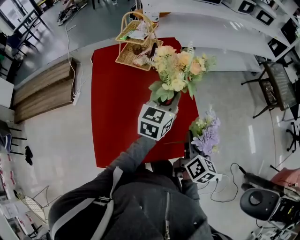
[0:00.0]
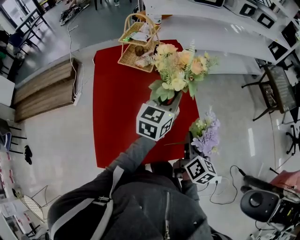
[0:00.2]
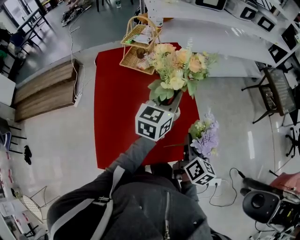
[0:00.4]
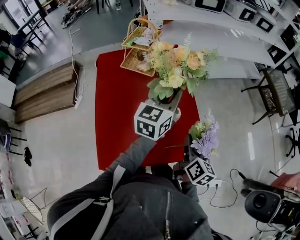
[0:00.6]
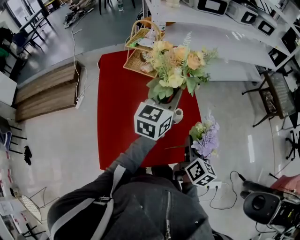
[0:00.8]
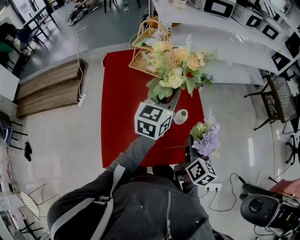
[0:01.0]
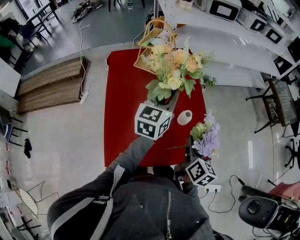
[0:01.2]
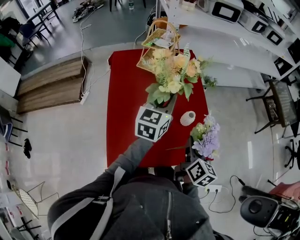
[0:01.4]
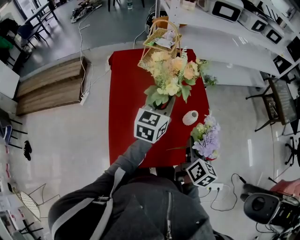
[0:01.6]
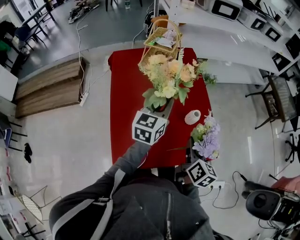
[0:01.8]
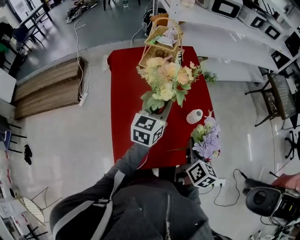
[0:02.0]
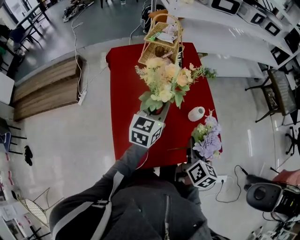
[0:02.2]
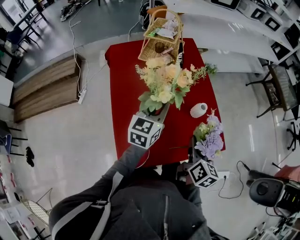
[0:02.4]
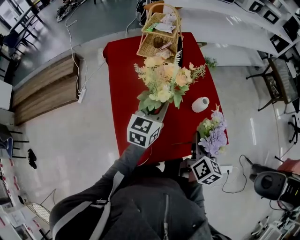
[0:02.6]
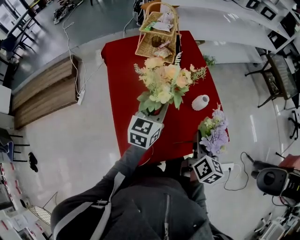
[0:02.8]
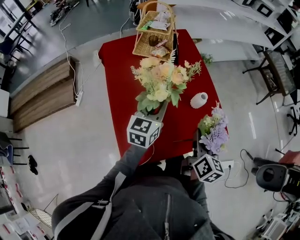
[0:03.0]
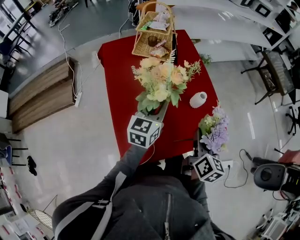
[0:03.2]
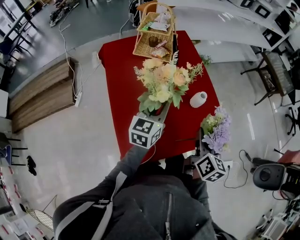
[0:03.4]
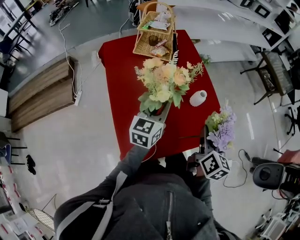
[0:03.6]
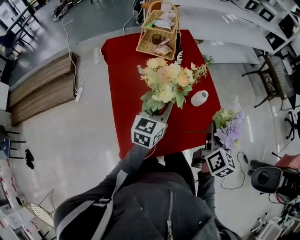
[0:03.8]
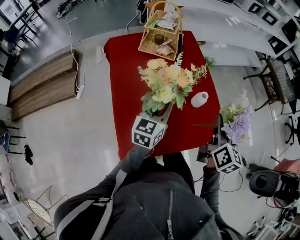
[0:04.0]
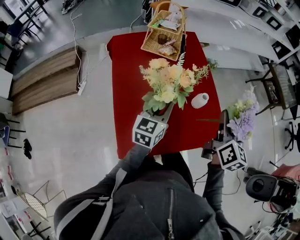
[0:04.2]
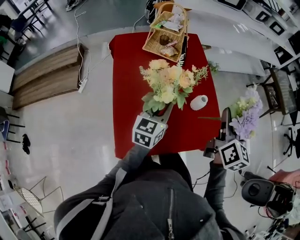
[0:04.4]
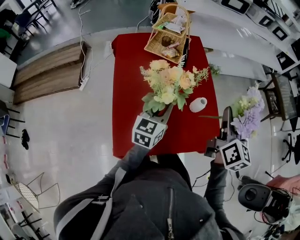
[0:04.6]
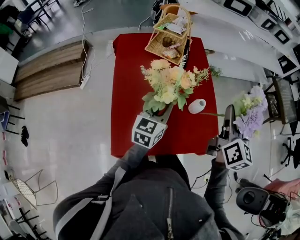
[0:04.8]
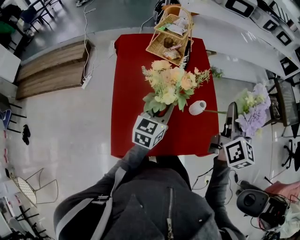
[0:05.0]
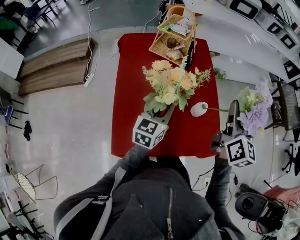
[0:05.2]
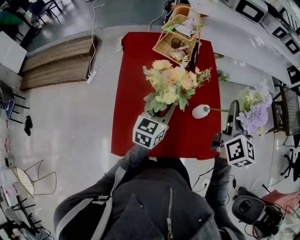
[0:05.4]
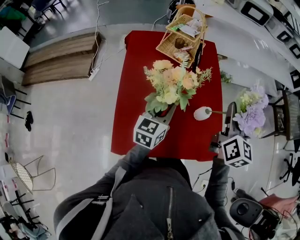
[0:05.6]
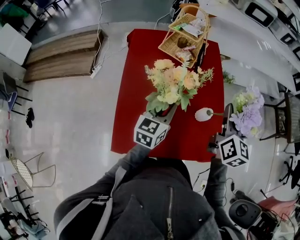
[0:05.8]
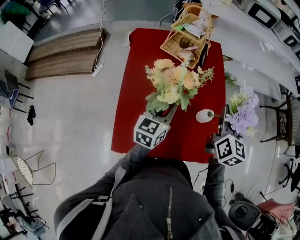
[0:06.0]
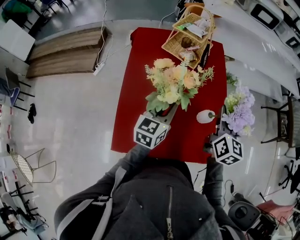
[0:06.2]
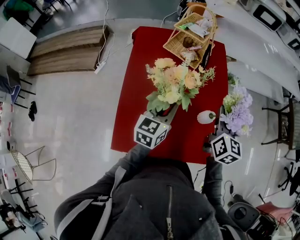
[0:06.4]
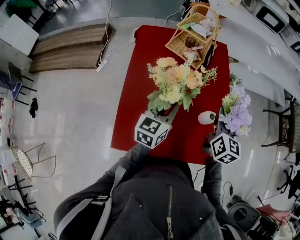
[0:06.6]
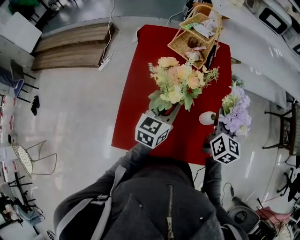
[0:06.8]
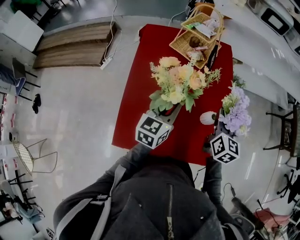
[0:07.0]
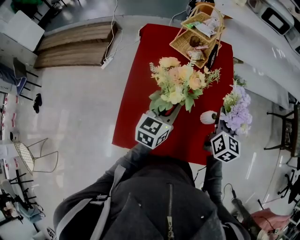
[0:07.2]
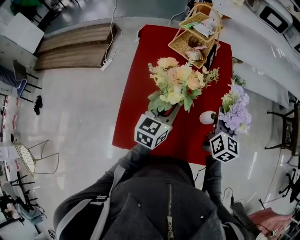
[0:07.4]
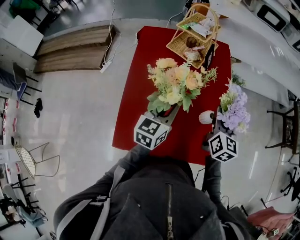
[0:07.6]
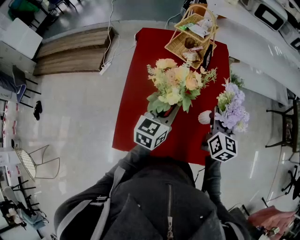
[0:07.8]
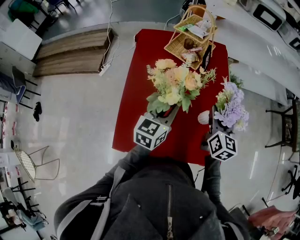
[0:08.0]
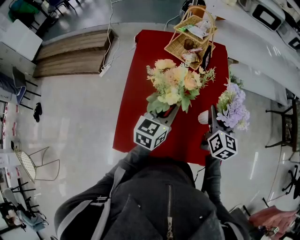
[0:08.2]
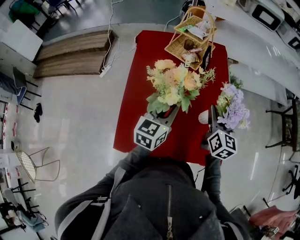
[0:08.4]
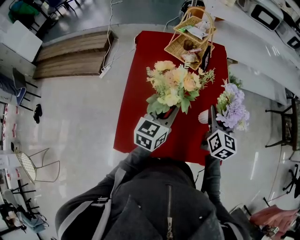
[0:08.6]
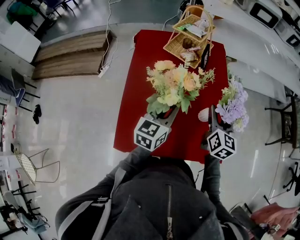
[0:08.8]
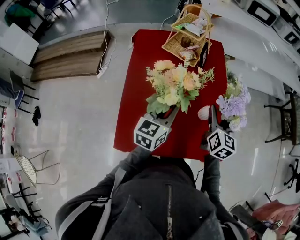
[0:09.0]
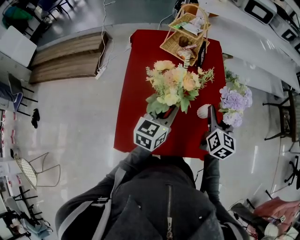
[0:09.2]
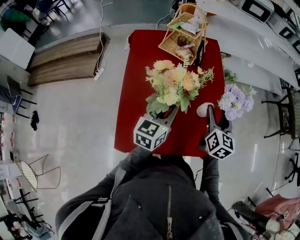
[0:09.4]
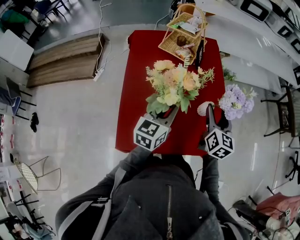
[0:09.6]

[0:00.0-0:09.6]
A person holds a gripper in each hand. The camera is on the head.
0:00.0 to 0:01.6: Both grippers move to the left, roughly 10 cm.
0:01.6 to 0:03.2: The left gripper shifts some 10 cm downward and backward.
0:03.2 to 0:04.8: The right gripper heads upward and forward, covering roughly 20 cm, and rotates about 20 degrees.
0:04.8 to 0:06.4: The right gripper shifts some 10 cm downward and forward.
0:06.4 to 0:08.0: The right gripper opens up.
0:08.0 to 0:09.6: The grippers stay close to where they were, moving slightly.

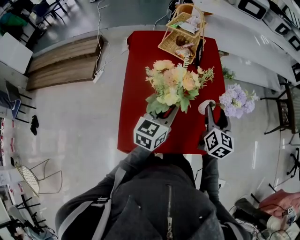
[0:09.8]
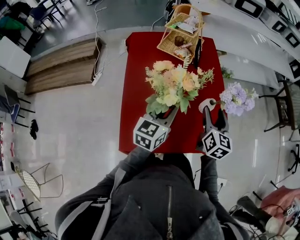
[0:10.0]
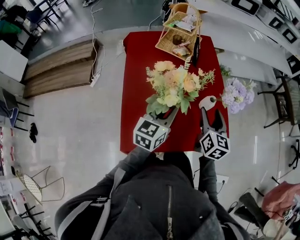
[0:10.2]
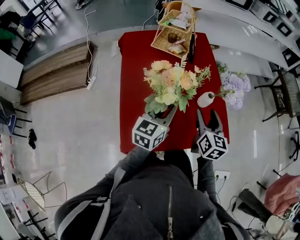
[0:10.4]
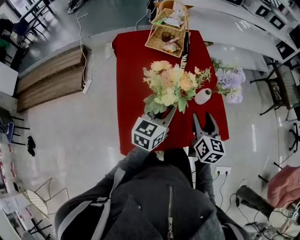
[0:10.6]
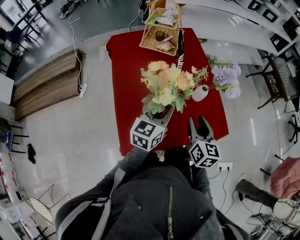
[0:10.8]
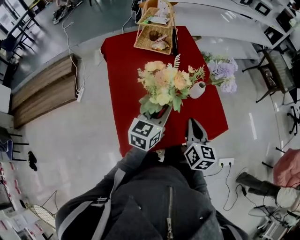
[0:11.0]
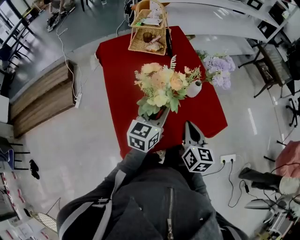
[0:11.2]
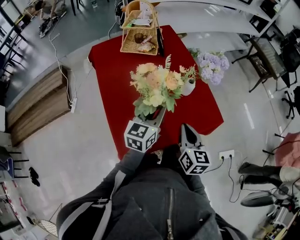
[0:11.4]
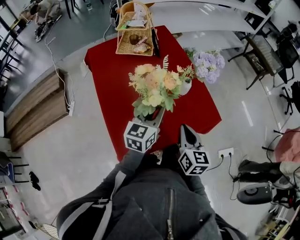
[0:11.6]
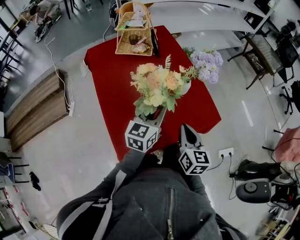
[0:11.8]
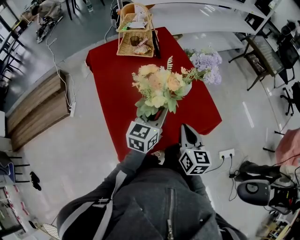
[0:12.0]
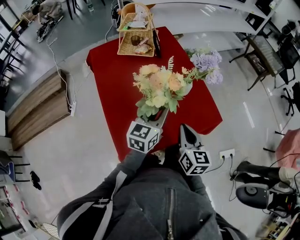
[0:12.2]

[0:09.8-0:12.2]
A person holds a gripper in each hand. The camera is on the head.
0:09.8 to 0:11.0: The right gripper heads backward, covering some 15 cm, and closes its fingers.
0:11.0 to 0:12.2: The grippers stay close to where they were, moving slightly.

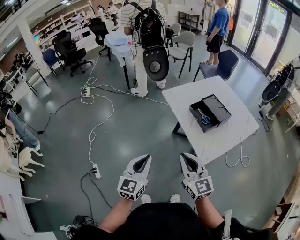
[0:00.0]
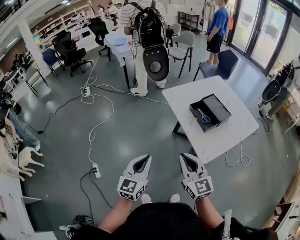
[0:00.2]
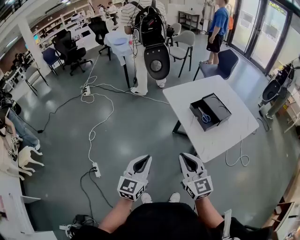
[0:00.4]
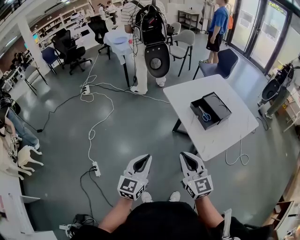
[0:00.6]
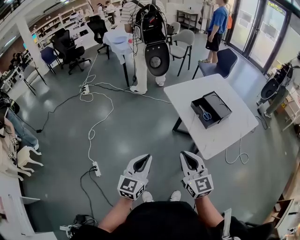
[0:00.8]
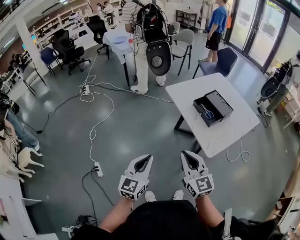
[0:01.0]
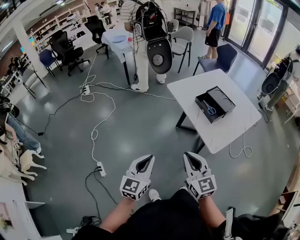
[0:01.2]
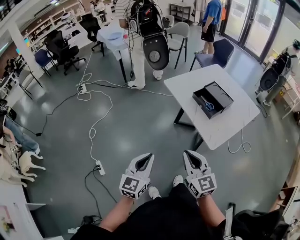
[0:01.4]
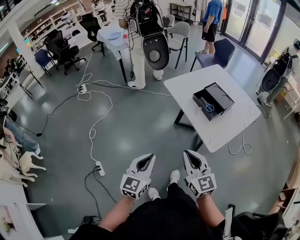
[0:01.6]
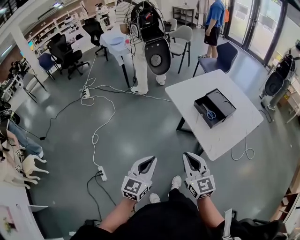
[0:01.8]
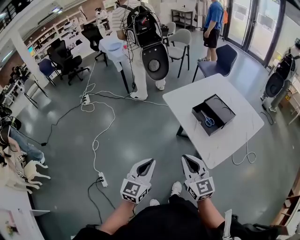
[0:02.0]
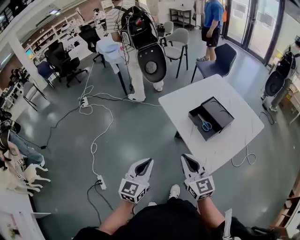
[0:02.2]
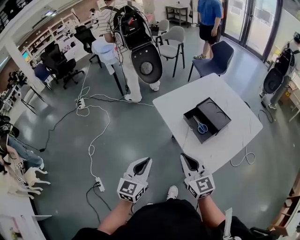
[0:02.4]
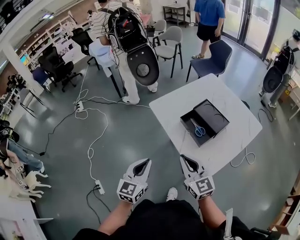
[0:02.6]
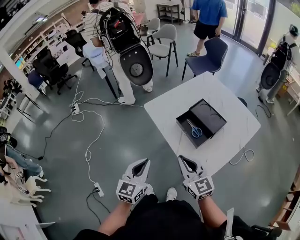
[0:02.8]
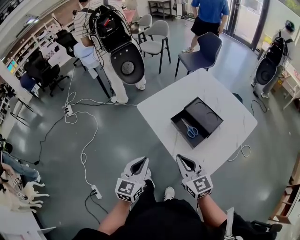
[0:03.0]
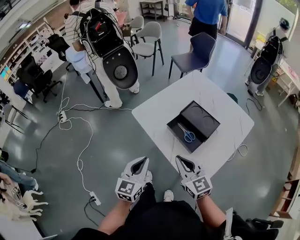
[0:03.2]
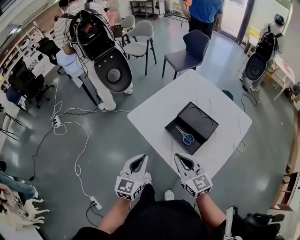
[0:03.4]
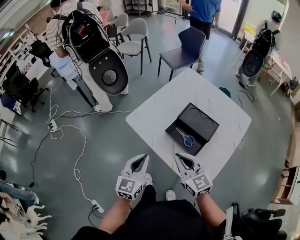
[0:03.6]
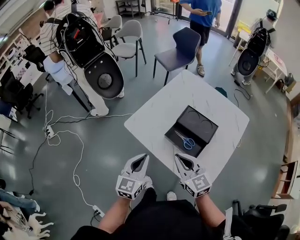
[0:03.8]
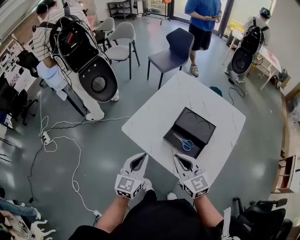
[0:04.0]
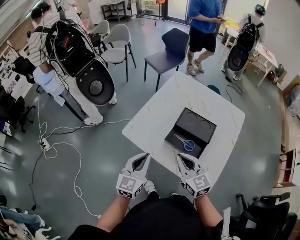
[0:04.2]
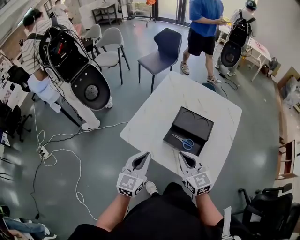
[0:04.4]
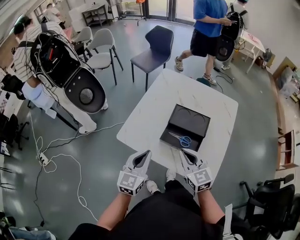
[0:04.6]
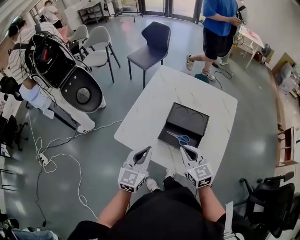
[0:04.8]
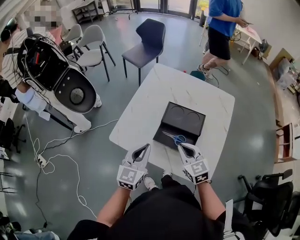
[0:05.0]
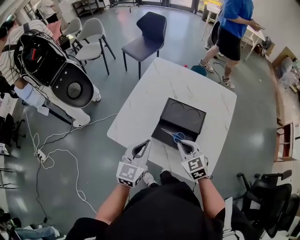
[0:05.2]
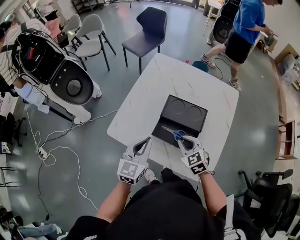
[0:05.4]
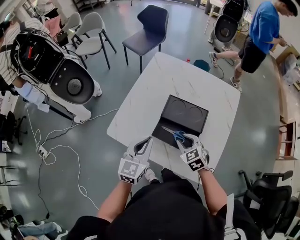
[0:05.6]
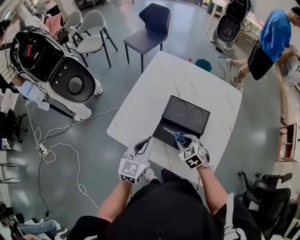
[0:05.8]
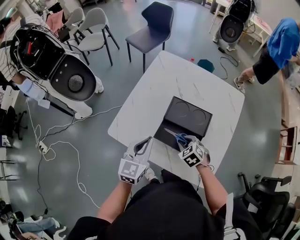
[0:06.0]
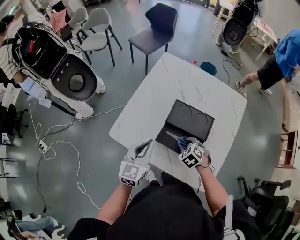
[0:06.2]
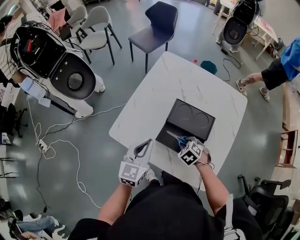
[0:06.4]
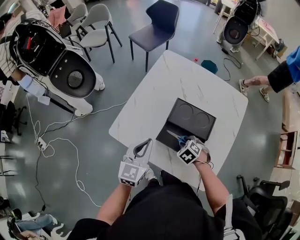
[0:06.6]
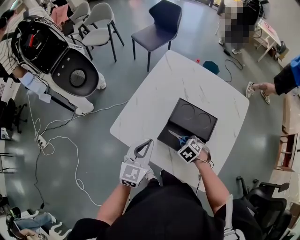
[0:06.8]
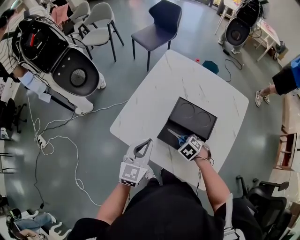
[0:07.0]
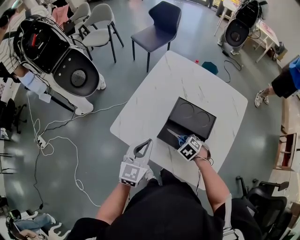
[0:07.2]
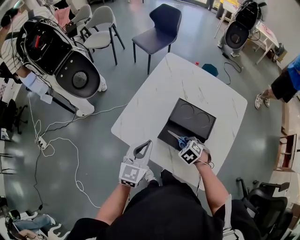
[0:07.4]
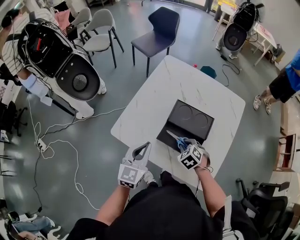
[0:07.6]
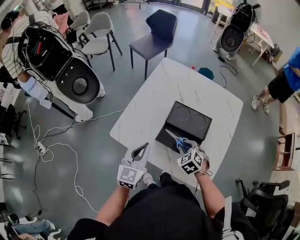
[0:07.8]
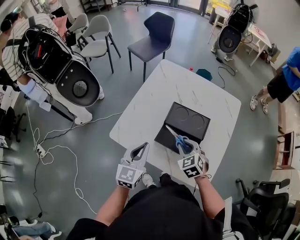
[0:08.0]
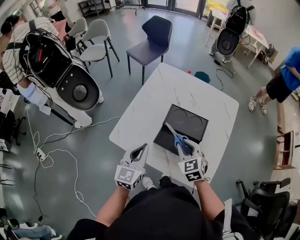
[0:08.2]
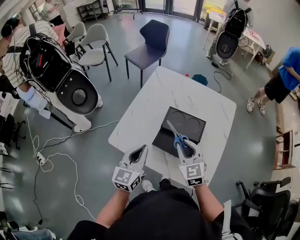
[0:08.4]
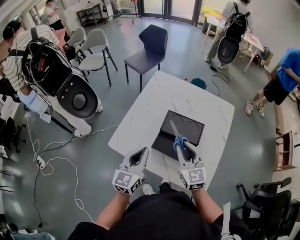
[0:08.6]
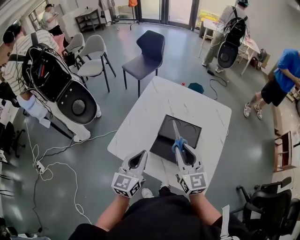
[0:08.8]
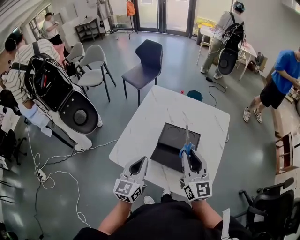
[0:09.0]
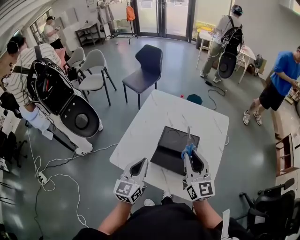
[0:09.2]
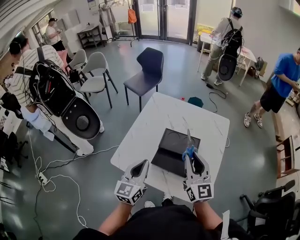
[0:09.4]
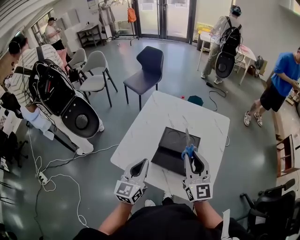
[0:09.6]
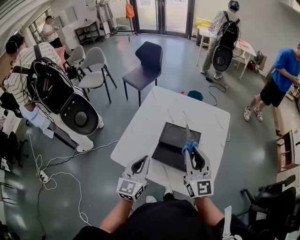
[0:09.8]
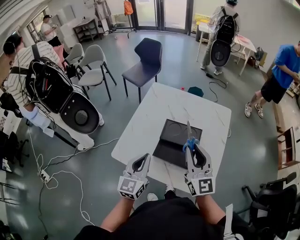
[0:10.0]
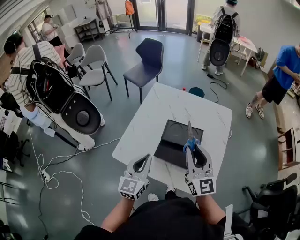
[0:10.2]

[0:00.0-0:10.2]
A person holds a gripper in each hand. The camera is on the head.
0:00.0 to 0:01.4: The left gripper changes place by roughly 5 cm. The right gripper changes place by about 5 cm.
0:01.4 to 0:03.0: The two grippers go roughly 30 cm forward and to the right.
0:03.0 to 0:04.4: The left gripper changes place by roughly 20 cm, and rotates about 30 degrees; the right gripper changes place by about 15 cm, and swivels about 30 degrees.
0:04.4 to 0:05.8: The right gripper is displaced downward, forward and to the right by about 20 cm, tilts its fingers some 40 degrees downward, and opens. Meanwhile the left gripper goes about 10 cm forward and to the right.
0:05.8 to 0:07.2: The right gripper shifts about 5 cm downward, and rotates approximately 20 degrees.
0:07.2 to 0:08.8: The left gripper heads upward, covering roughly 5 cm. Meanwhile the right gripper shifts about 30 cm upward, and points its fingers some 70 degrees further upward.
0:08.8 to 0:10.2: The right gripper travels upward by about 5 cm.

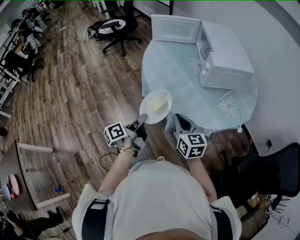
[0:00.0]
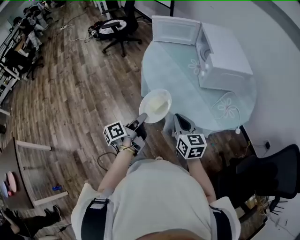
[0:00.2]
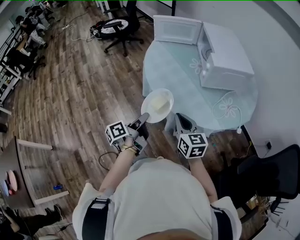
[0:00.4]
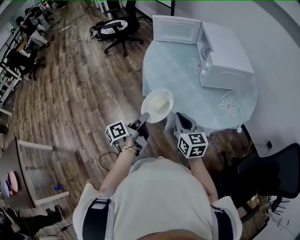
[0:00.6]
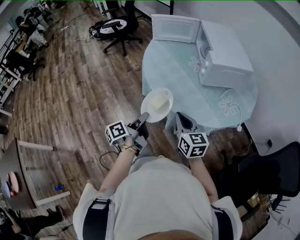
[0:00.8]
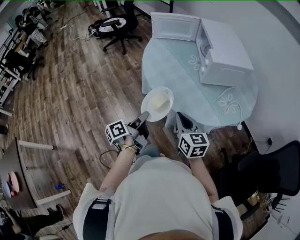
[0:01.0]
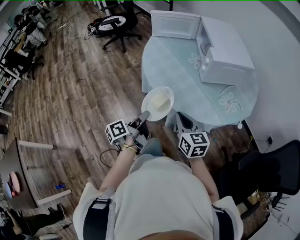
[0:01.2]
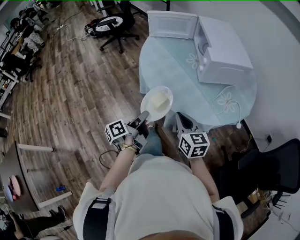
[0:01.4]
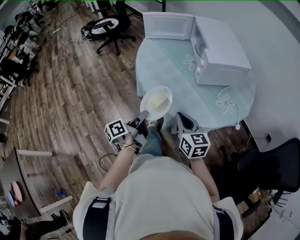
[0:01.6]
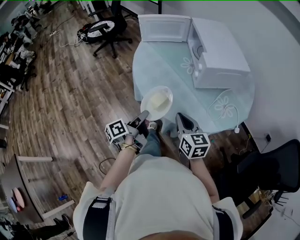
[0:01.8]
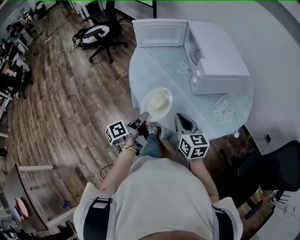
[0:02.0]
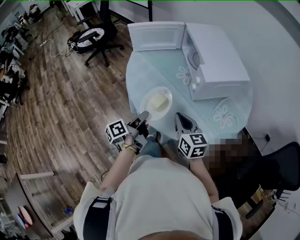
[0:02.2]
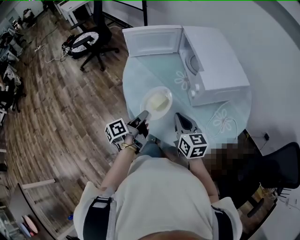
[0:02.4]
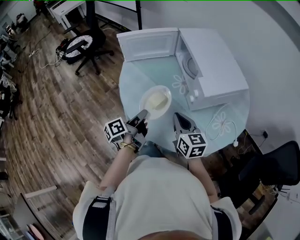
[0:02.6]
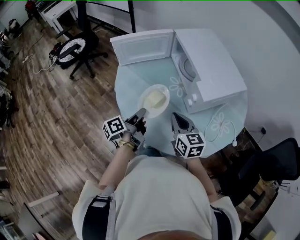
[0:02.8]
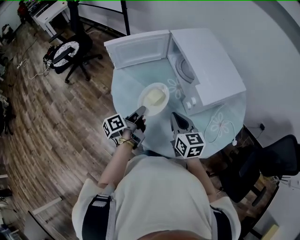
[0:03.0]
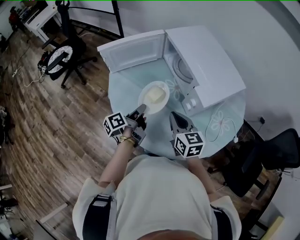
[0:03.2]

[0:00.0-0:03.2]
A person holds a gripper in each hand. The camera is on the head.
0:01.6 to 0:03.2: The right gripper ends up approximately 30 cm from where it was.
